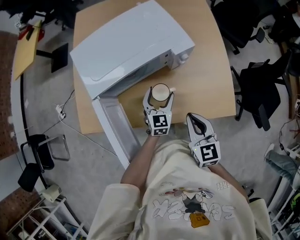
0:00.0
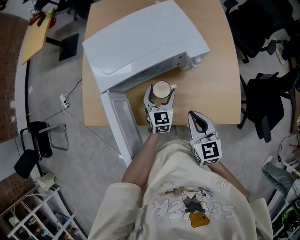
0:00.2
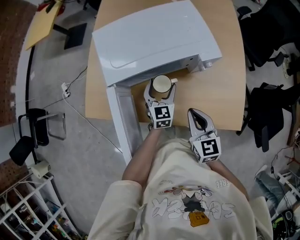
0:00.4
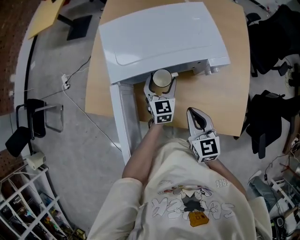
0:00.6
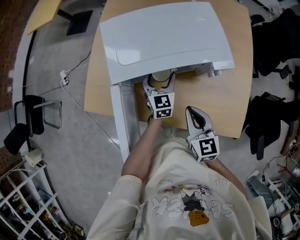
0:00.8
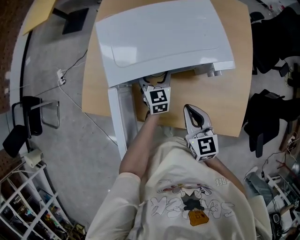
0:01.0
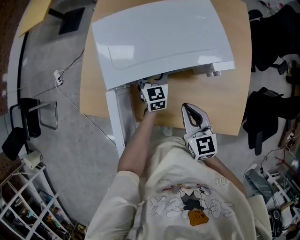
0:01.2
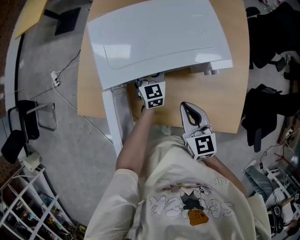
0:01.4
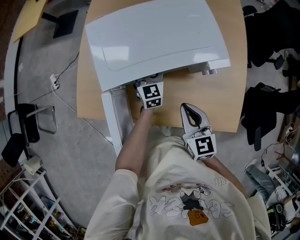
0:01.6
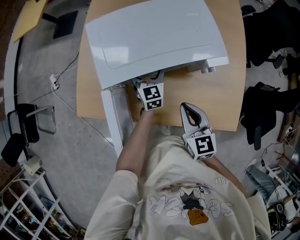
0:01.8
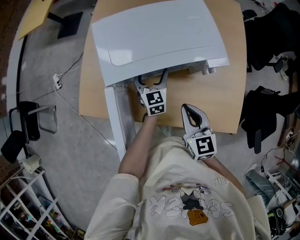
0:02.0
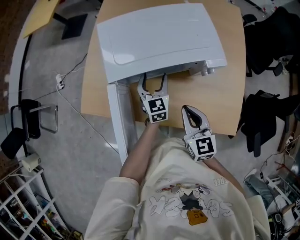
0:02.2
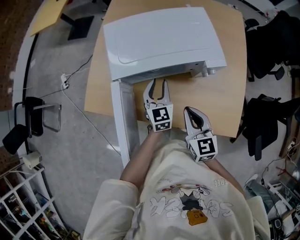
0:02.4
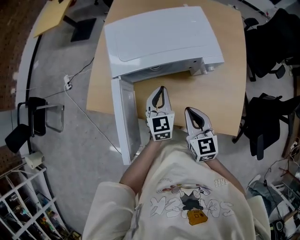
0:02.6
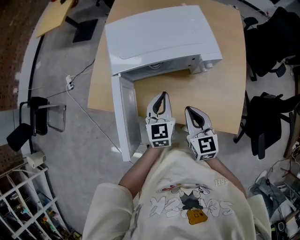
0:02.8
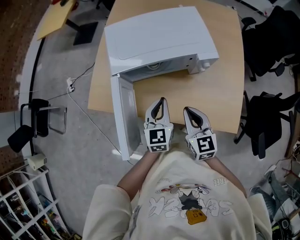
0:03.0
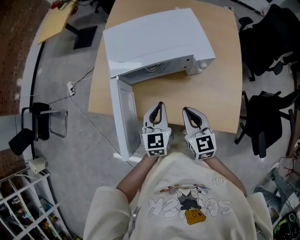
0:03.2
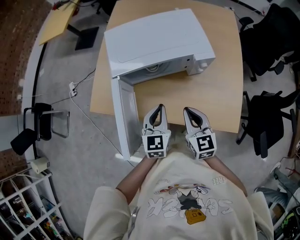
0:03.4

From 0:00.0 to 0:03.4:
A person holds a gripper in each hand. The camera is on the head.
From 0:00.0 to 0:01.6: The right gripper goes about 15 cm forward and to the left; the left gripper moves forward and to the left, roughly 20 cm, and swivels about 20 degrees.
From 0:01.6 to 0:03.4: The right gripper heads backward, covering about 10 cm. The left gripper moves backward and upward, roughly 25 cm, and closes its fingers.

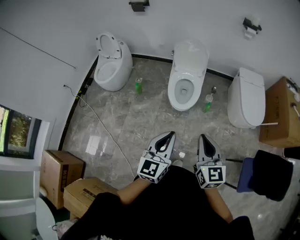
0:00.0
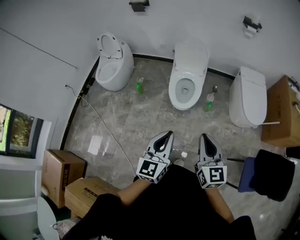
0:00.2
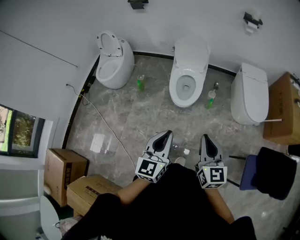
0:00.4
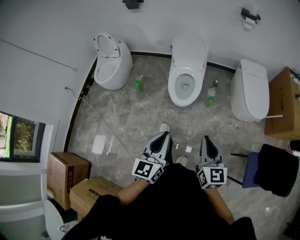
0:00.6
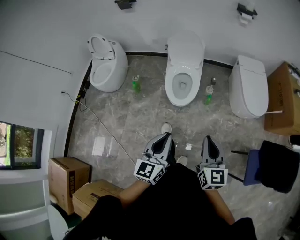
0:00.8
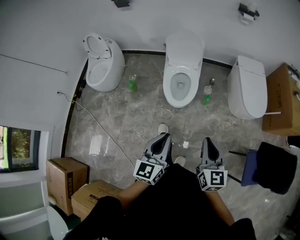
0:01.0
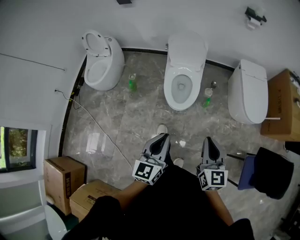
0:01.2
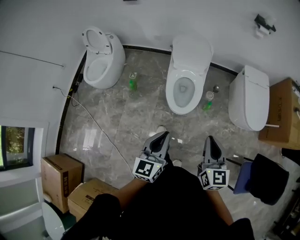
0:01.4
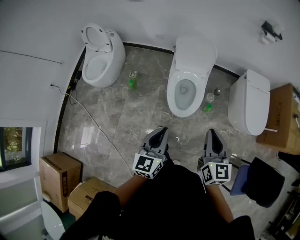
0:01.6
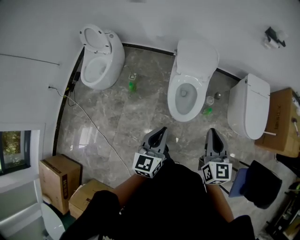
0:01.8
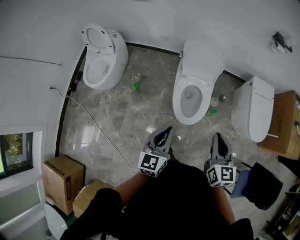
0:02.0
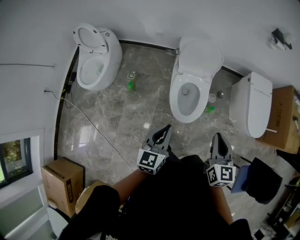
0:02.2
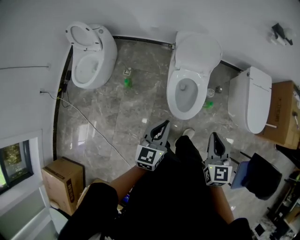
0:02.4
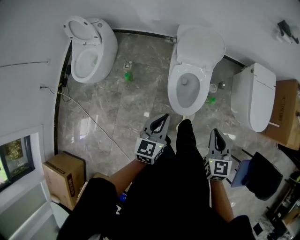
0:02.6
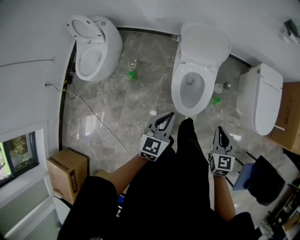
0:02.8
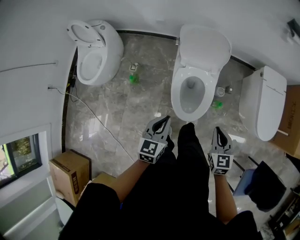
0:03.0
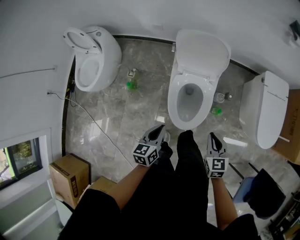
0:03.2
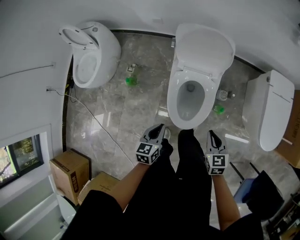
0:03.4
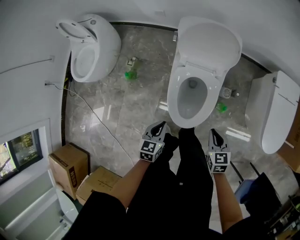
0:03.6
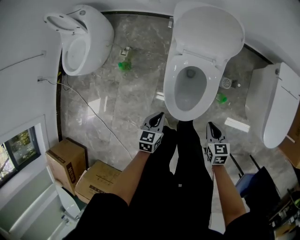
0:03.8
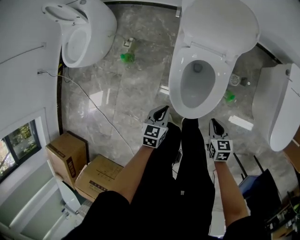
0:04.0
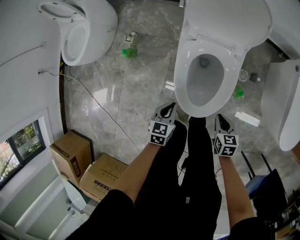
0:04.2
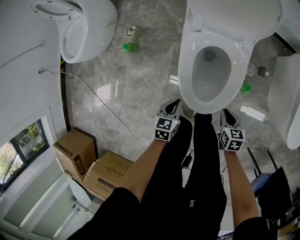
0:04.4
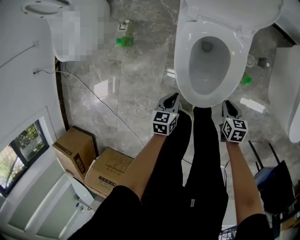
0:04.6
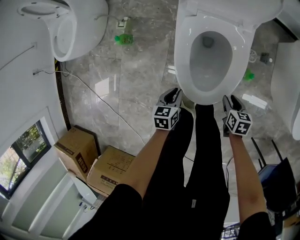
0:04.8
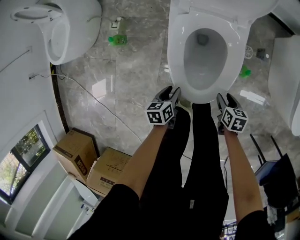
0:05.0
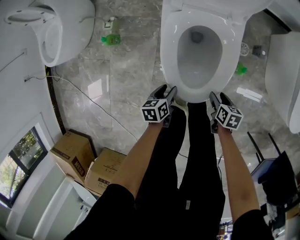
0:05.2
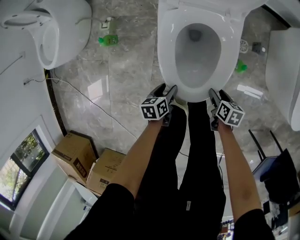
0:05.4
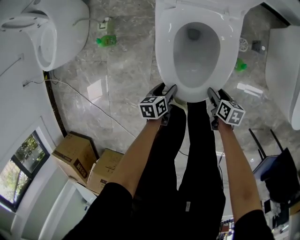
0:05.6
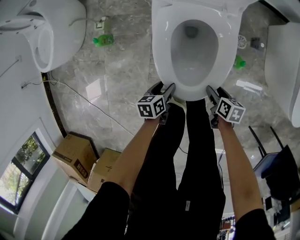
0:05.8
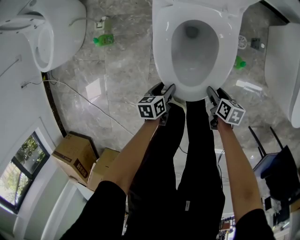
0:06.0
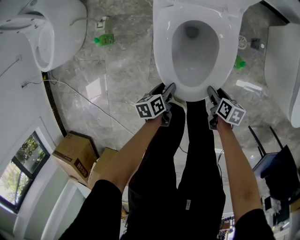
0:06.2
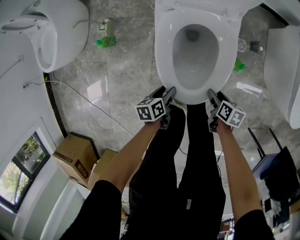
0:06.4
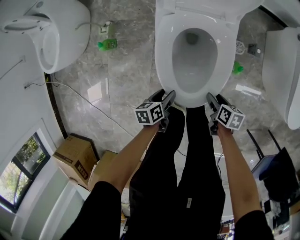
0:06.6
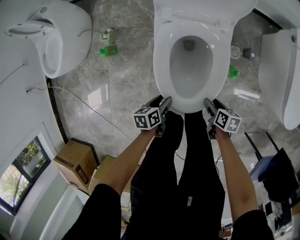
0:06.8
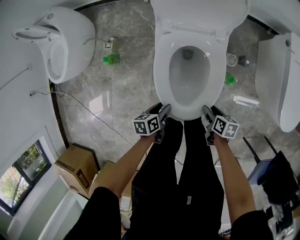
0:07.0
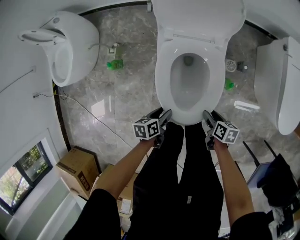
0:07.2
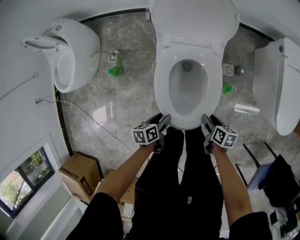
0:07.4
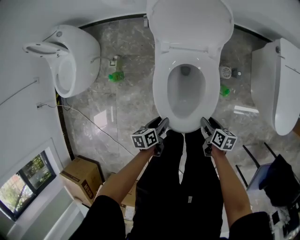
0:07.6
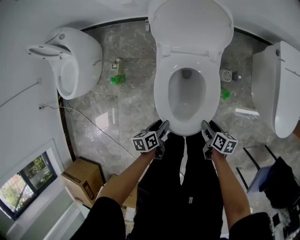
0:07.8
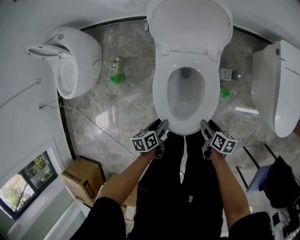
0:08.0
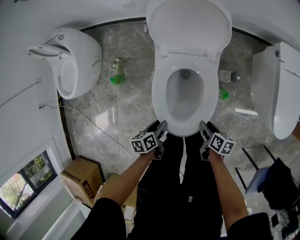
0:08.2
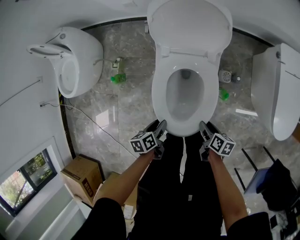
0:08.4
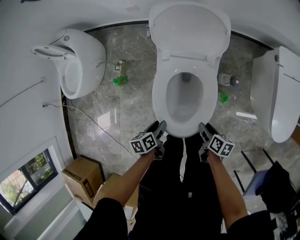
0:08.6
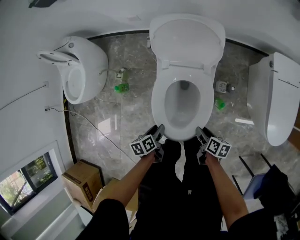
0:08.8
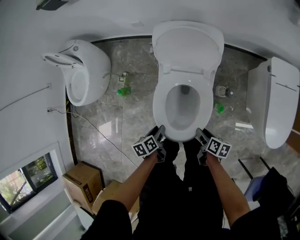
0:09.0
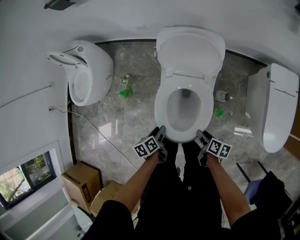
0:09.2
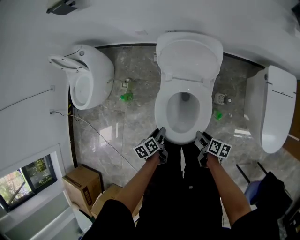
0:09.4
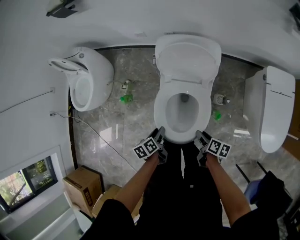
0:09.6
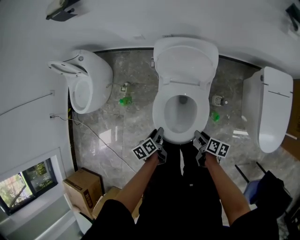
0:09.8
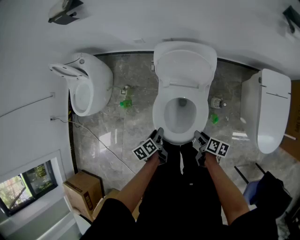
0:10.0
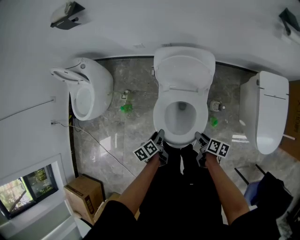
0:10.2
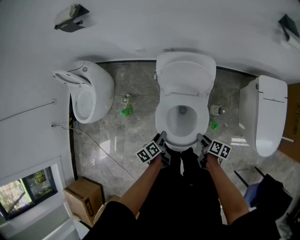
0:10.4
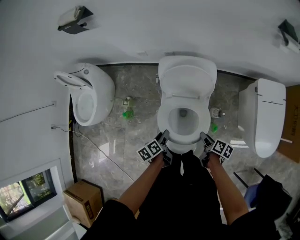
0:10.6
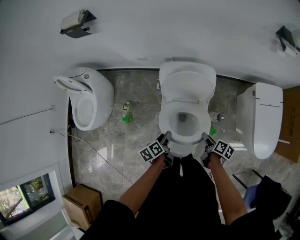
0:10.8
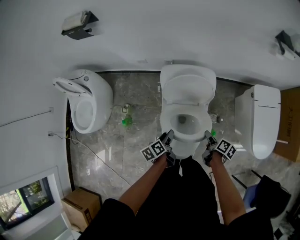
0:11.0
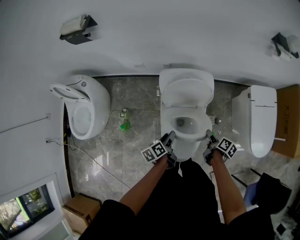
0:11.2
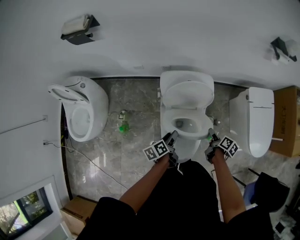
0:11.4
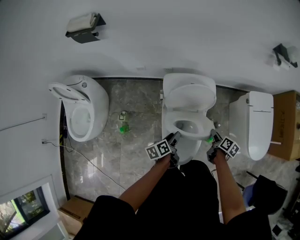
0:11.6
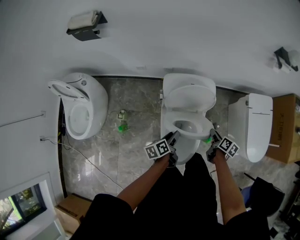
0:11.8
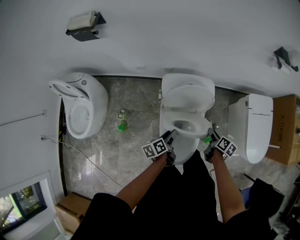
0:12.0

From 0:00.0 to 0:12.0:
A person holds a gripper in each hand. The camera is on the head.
From 0:00.0 to 0:01.6: The right gripper shifts about 25 cm forward, while the left gripper goes about 25 cm forward and to the left.
From 0:01.6 to 0:03.0: The left gripper goes approximately 25 cm forward and downward. The right gripper heads downward and forward, covering about 25 cm, and rotates roughly 20 degrees.
From 0:03.0 to 0:04.4: Both grippers travel together downward, about 40 cm. The left gripper swivels about 20 degrees, while the right gripper swivels roughly 30 degrees.
From 0:04.4 to 0:06.0: Both grippers move downward, about 10 cm. The left gripper rotates about 30 degrees, and opens up. Meanwhile the right gripper changes its angle by roughly 30 degrees, and opens up.
From 0:06.0 to 0:07.6: Both grippers move upward, approximately 15 cm.
From 0:07.6 to 0:09.0: Both grippers move upward, about 10 cm.
From 0:09.0 to 0:10.4: The two grippers go some 10 cm upward and forward.
From 0:10.4 to 0:12.0: The left gripper changes place by approximately 15 cm, and changes its angle by roughly 20 degrees; the right gripper changes place by approximately 15 cm, and changes its angle by approximately 20 degrees.

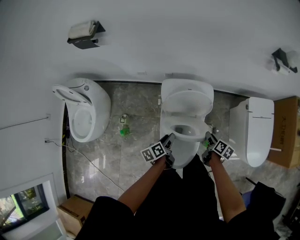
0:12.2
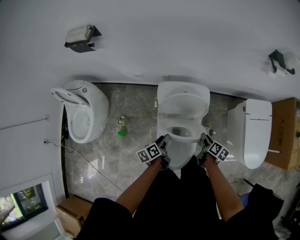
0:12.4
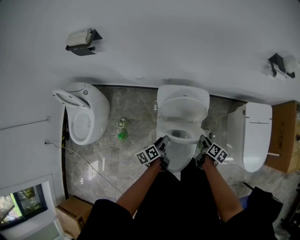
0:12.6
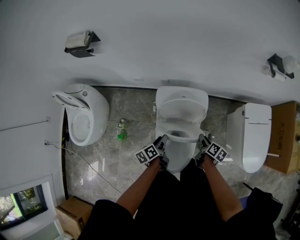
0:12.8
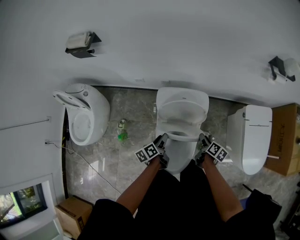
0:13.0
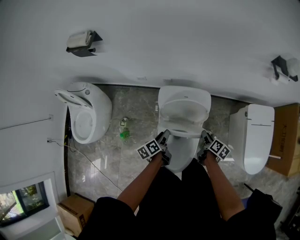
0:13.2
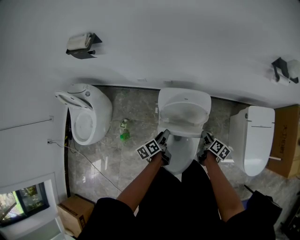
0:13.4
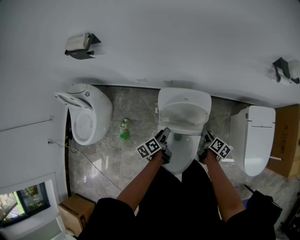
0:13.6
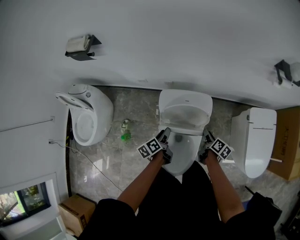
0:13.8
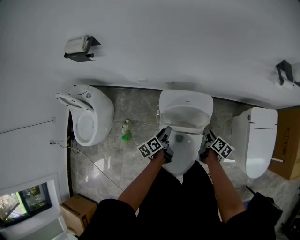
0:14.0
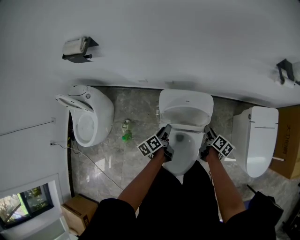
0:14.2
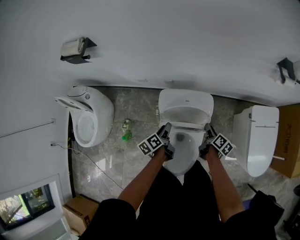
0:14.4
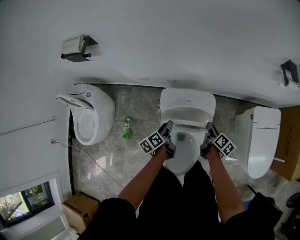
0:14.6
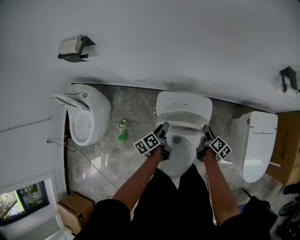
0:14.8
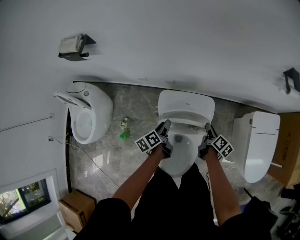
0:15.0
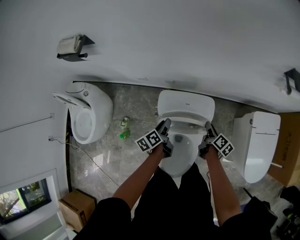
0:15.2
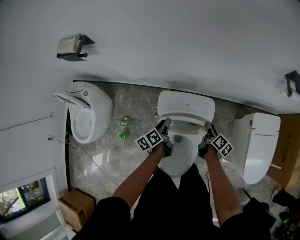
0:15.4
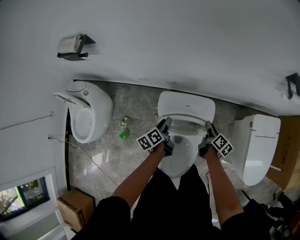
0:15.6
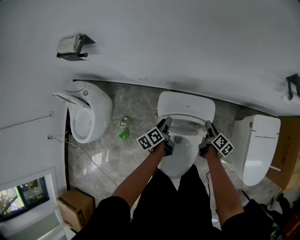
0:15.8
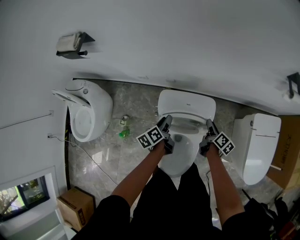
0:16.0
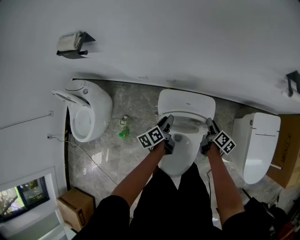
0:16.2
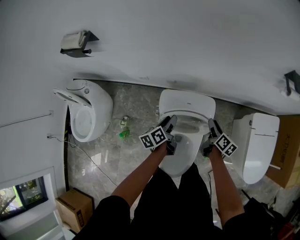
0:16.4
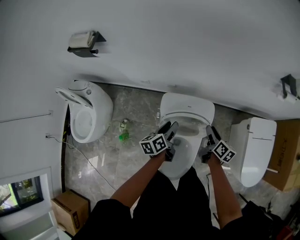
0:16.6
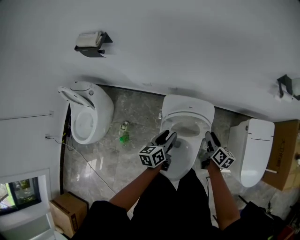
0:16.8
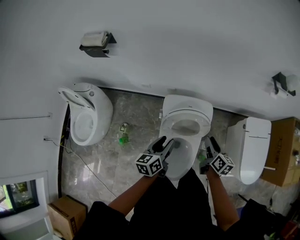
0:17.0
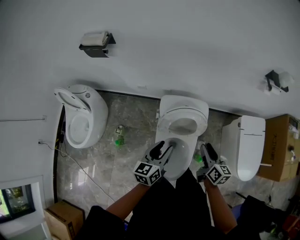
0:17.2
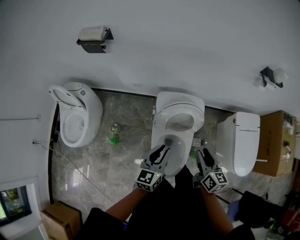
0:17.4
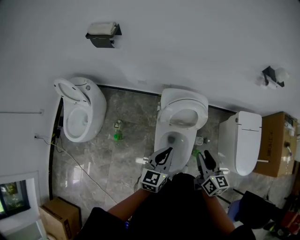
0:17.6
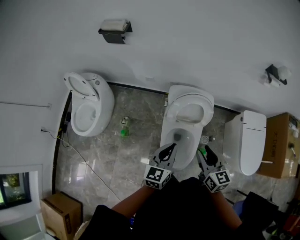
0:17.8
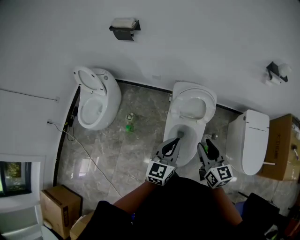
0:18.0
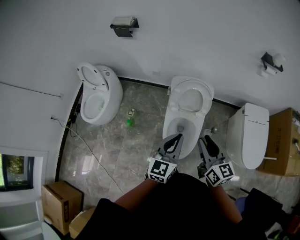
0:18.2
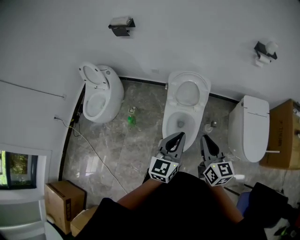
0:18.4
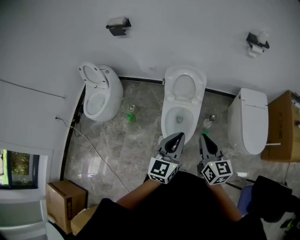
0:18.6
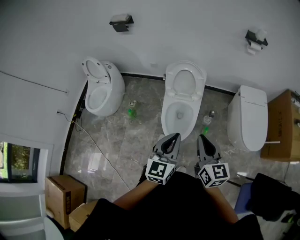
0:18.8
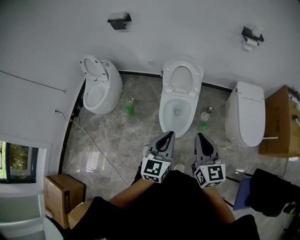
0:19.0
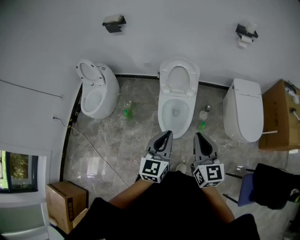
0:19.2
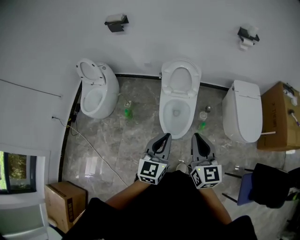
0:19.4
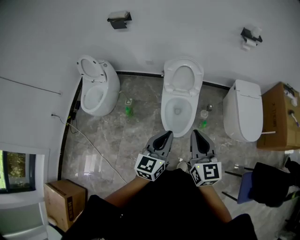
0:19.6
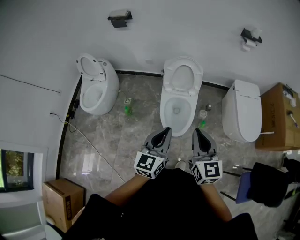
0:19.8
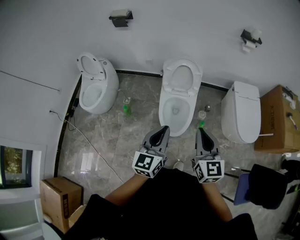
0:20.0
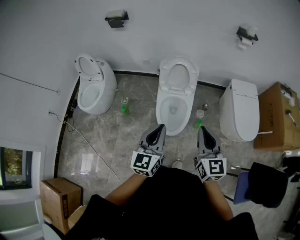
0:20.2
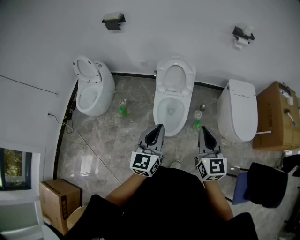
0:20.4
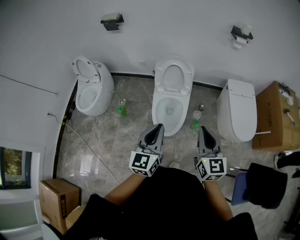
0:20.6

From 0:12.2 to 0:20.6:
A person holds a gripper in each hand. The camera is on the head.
From 0:12.2 to 0:13.6: Both grippers travel together forward, some 10 cm.
From 0:13.6 to 0:15.0: The two grippers go approximately 10 cm forward.
From 0:15.0 to 0:16.4: The grippers move only a little.
From 0:16.4 to 0:17.8: The left gripper shifts some 35 cm backward and upward, twists some 40 degrees clockwise, seen from behind, and closes its fingers; the right gripper travels backward, upward and to the left by roughly 40 cm, and rotates around the line of its fingers by some 40 degrees, counterclockwise from behind.
From 0:17.8 to 0:19.2: Both grippers move backward, roughly 30 cm. The right gripper closes.
